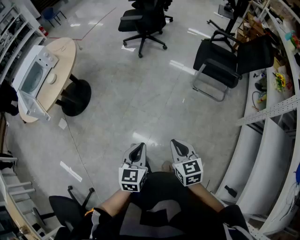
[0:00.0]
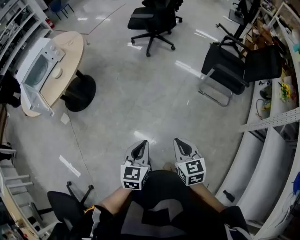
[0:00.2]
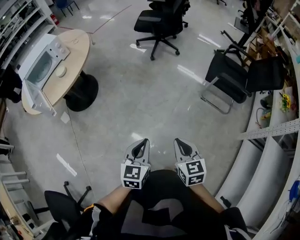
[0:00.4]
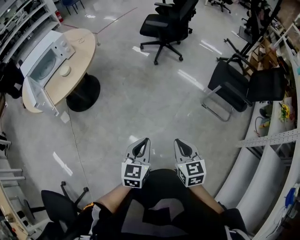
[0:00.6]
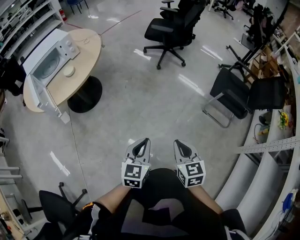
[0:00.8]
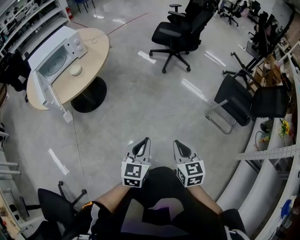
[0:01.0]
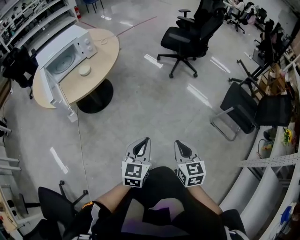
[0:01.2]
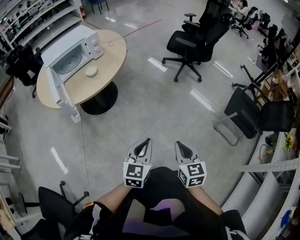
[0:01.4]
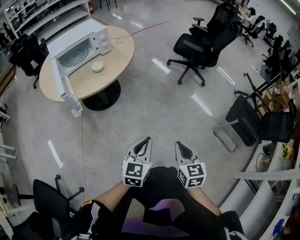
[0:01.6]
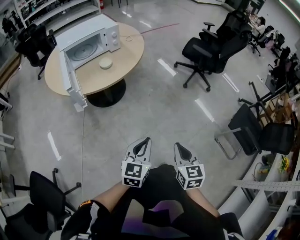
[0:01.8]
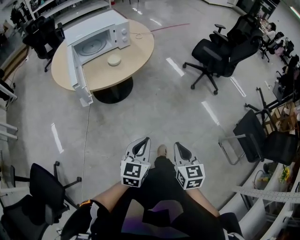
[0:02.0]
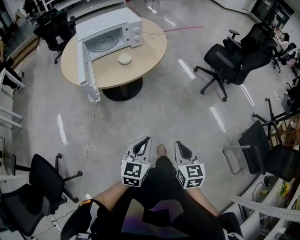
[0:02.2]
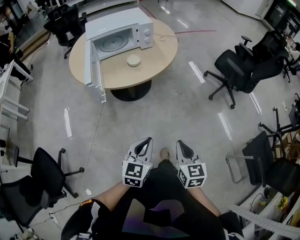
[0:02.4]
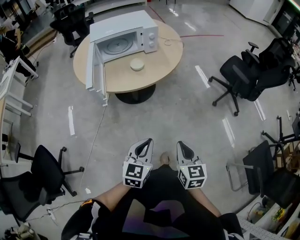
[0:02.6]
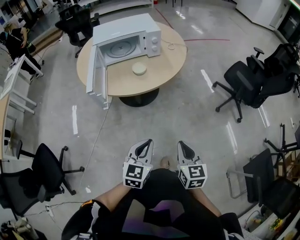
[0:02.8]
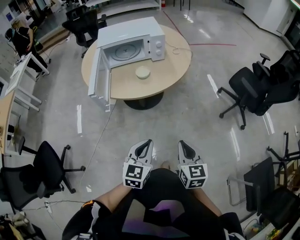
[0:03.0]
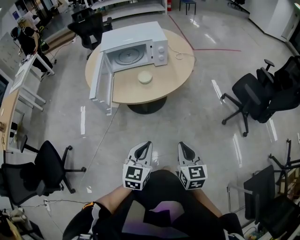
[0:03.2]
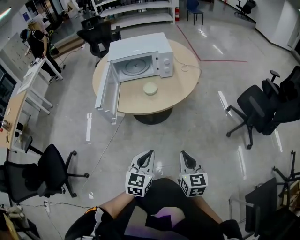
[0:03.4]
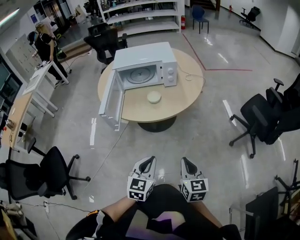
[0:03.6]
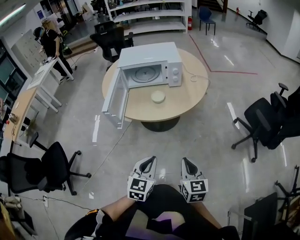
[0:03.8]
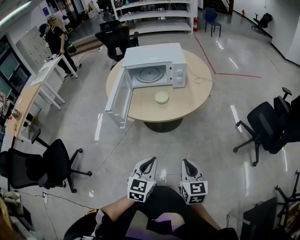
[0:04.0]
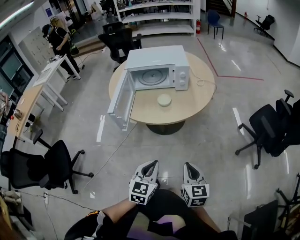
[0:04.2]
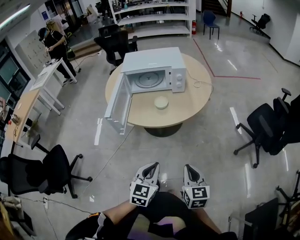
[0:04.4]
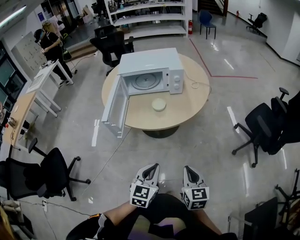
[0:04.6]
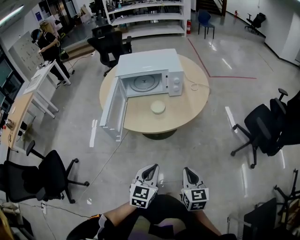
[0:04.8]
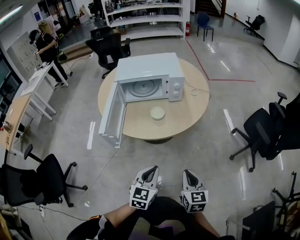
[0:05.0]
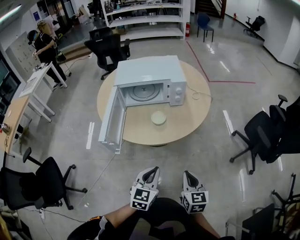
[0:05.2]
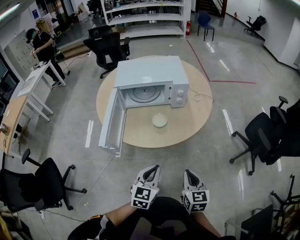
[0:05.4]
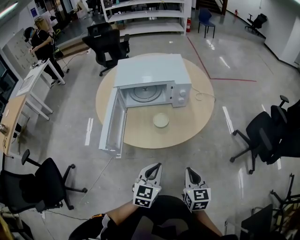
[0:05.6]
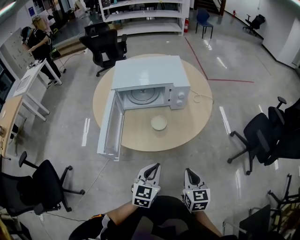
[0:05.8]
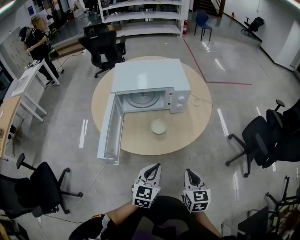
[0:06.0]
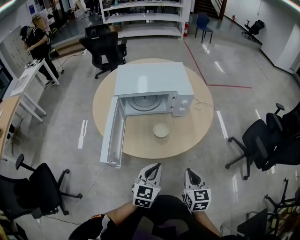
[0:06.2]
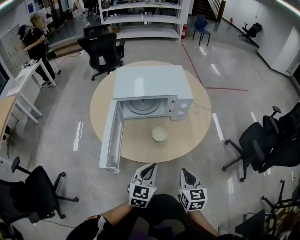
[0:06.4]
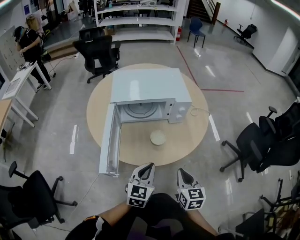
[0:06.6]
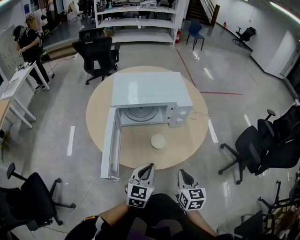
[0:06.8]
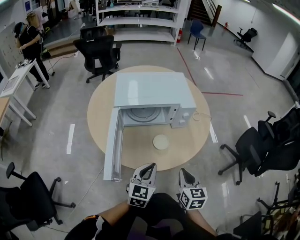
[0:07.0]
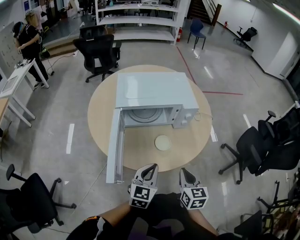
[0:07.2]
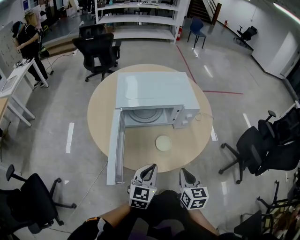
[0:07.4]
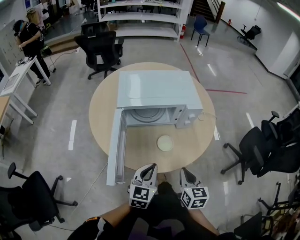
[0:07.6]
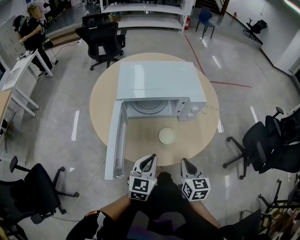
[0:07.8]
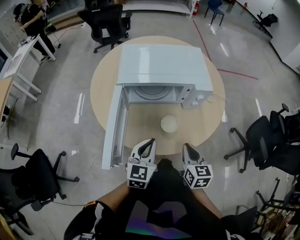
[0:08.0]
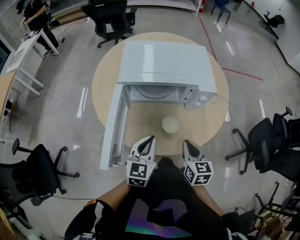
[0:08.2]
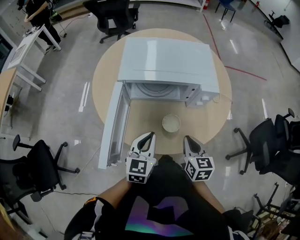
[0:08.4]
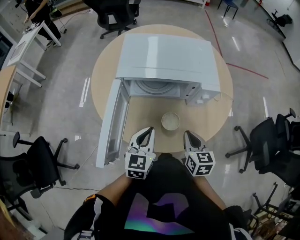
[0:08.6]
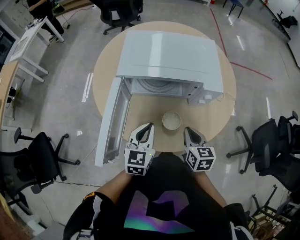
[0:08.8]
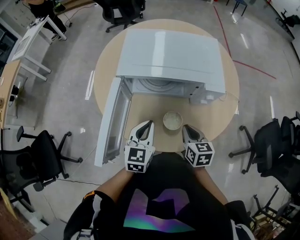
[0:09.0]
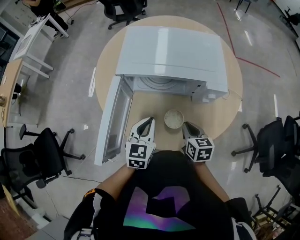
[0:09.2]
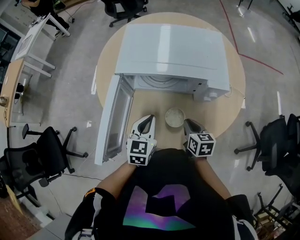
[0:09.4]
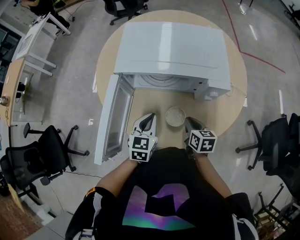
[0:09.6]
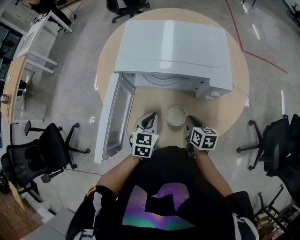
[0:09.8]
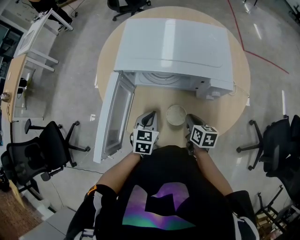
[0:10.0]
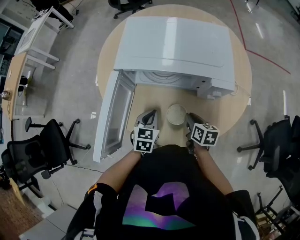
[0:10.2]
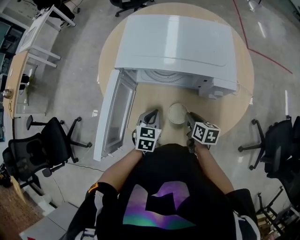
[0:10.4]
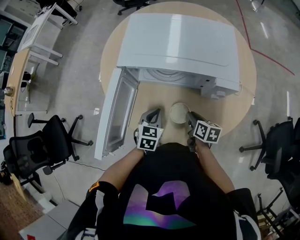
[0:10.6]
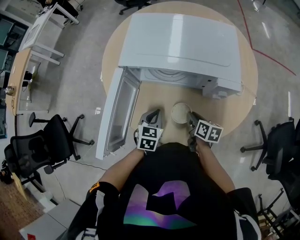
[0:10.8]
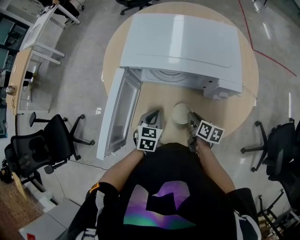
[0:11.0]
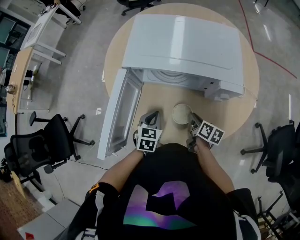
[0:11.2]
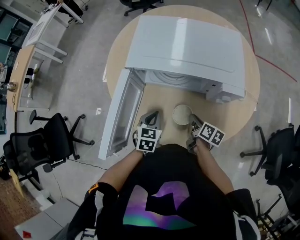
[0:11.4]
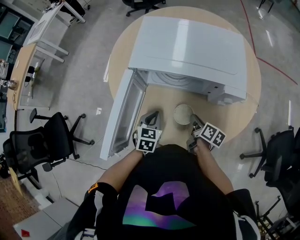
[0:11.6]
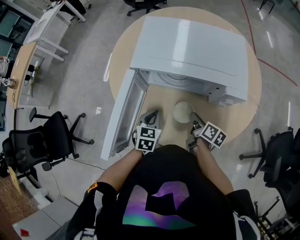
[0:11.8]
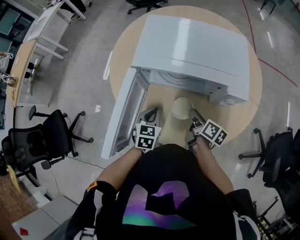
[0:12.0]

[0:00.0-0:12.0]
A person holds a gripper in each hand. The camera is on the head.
0:00.0 to 0:01.6: The two grippers go about 35 cm to the left and forward.
0:01.6 to 0:03.0: The right gripper changes place by roughly 25 cm, and turns by about 30 degrees, while the left gripper ends up approximately 20 cm from where it was, and changes its angle by about 30 degrees.
0:03.0 to 0:04.4: The right gripper heads forward, covering about 5 cm.
0:04.4 to 0:06.0: The grippers both shift forward by some 20 cm.
0:06.0 to 0:07.6: The left gripper travels to the left and forward by about 15 cm. Meanwhile the right gripper goes approximately 15 cm forward and to the left.
0:07.6 to 0:09.0: The right gripper moves forward and downward, some 20 cm. The left gripper goes roughly 15 cm forward.
0:09.0 to 0:10.4: The two grippers go some 10 cm downward. The right gripper turns by roughly 20 degrees.
0:10.4 to 0:12.0: The right gripper moves roughly 5 cm, and swivels some 20 degrees. The left gripper heads to the left, covering roughly 5 cm.

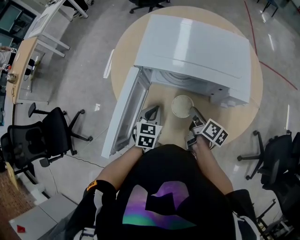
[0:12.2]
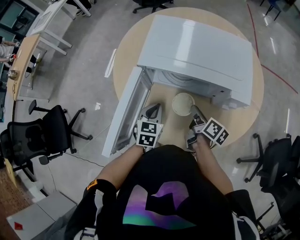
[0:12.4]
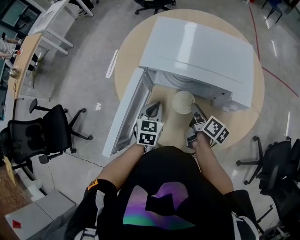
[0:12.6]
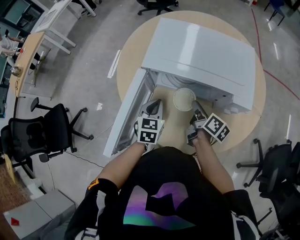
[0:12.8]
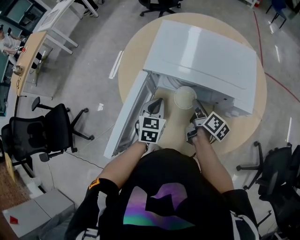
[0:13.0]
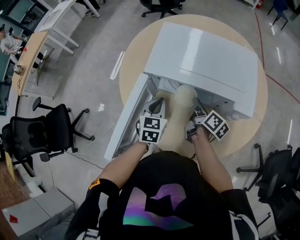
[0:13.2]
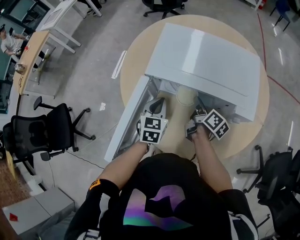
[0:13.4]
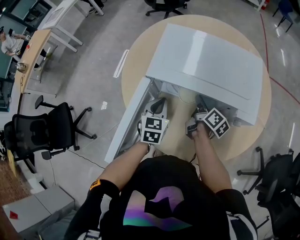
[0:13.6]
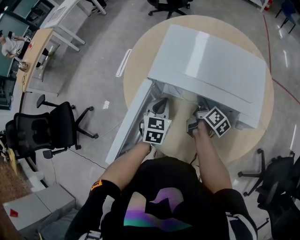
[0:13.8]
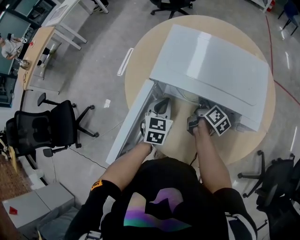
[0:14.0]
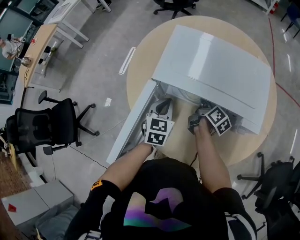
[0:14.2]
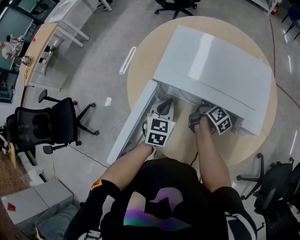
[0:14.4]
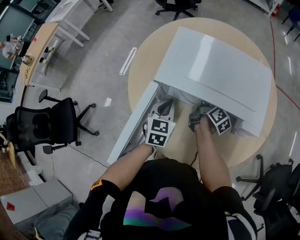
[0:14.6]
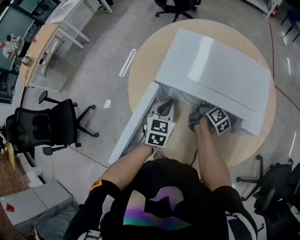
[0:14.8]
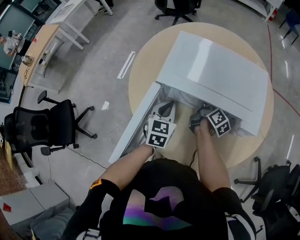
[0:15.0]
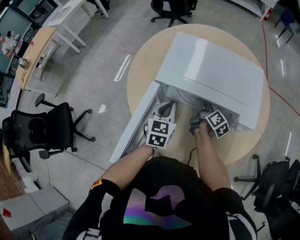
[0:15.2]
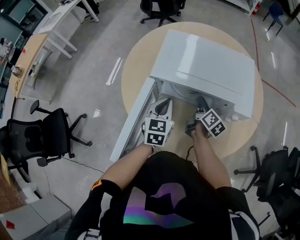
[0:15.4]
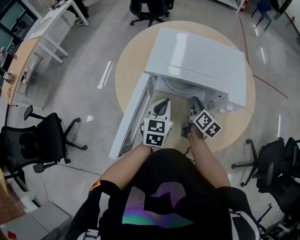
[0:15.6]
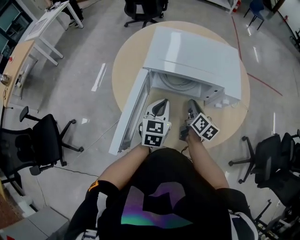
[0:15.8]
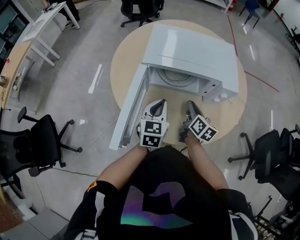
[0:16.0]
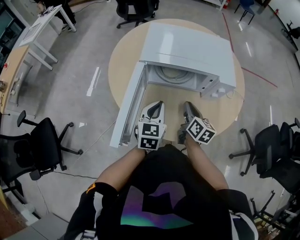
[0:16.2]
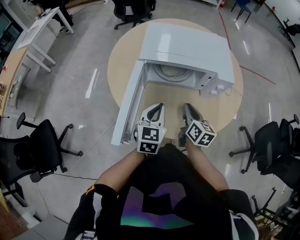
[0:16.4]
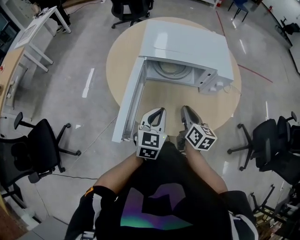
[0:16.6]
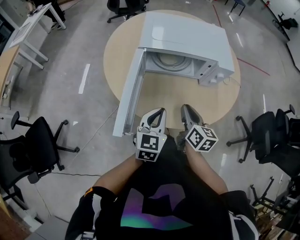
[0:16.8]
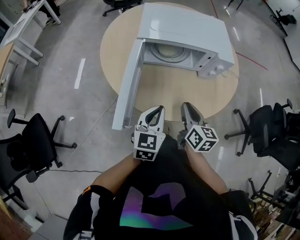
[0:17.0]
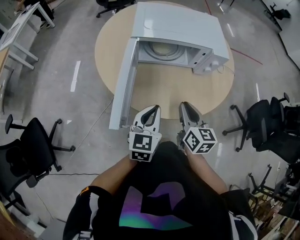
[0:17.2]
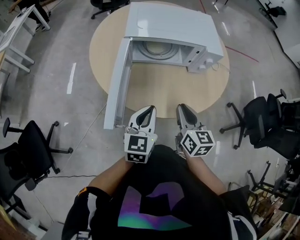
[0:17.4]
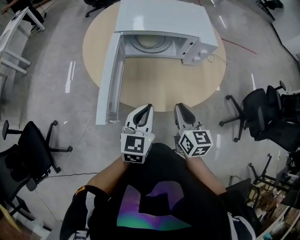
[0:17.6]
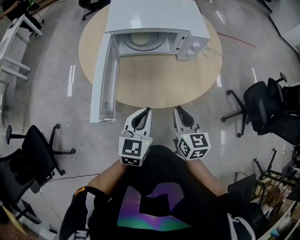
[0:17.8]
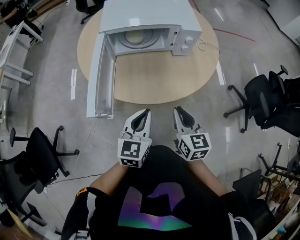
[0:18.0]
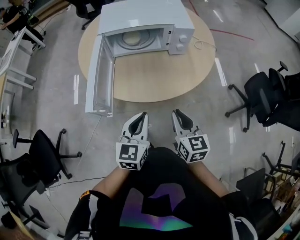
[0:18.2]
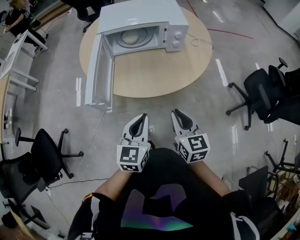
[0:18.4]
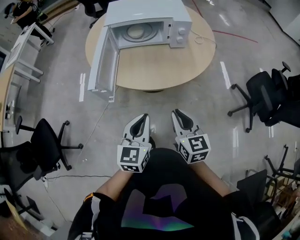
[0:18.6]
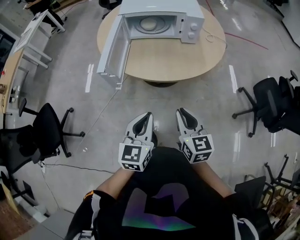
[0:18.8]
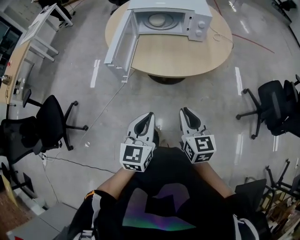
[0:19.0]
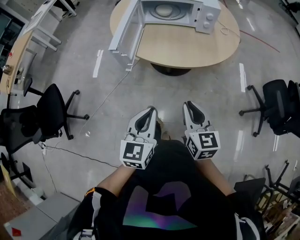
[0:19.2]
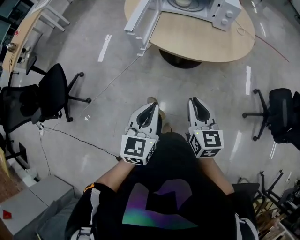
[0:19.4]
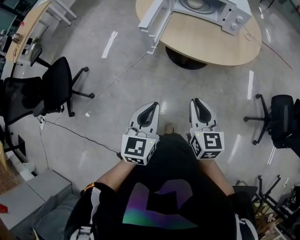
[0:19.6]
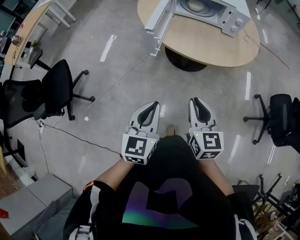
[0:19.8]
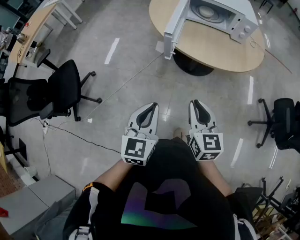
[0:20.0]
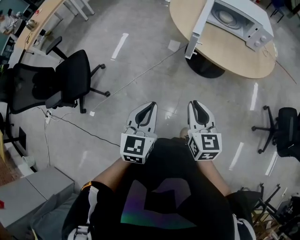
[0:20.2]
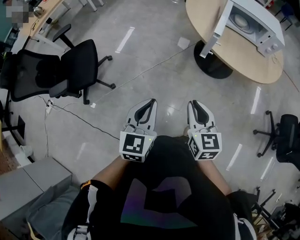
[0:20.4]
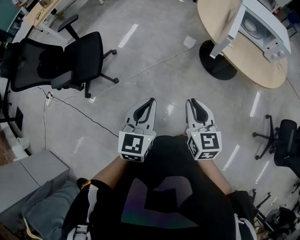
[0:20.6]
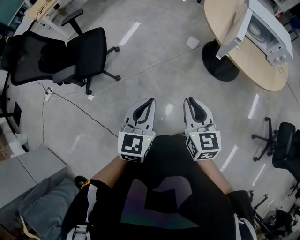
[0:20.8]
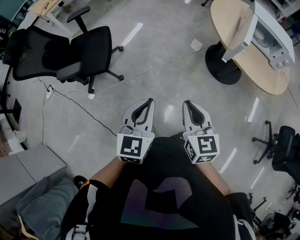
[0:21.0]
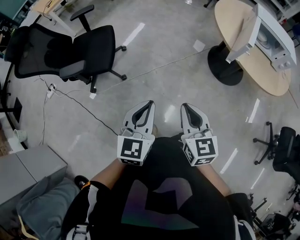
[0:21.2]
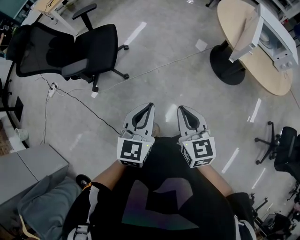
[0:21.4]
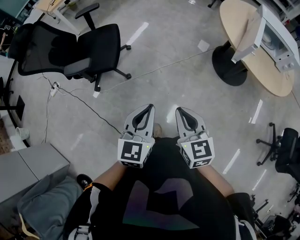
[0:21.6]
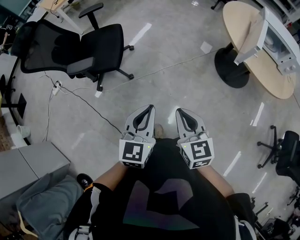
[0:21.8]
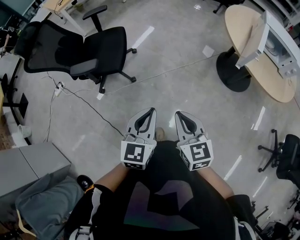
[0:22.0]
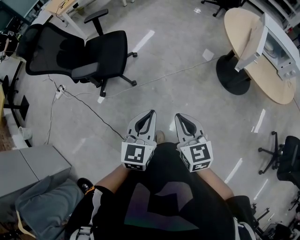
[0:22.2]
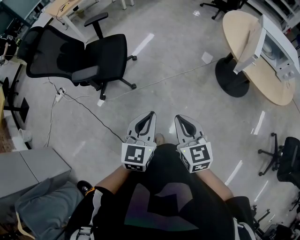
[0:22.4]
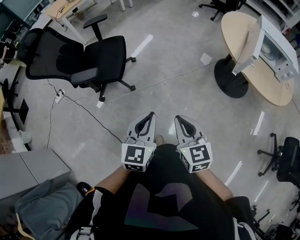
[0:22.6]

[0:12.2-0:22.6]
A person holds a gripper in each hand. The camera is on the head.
0:12.2 to 0:13.6: The right gripper goes some 10 cm forward, while the left gripper shifts approximately 10 cm forward and upward.
0:13.6 to 0:15.2: The grippers move only a little.
0:15.2 to 0:16.6: Both grippers travel together backward, some 20 cm. The right gripper rotates approximately 30 degrees.
0:16.6 to 0:18.2: Both grippers move backward, approximately 20 cm.
0:18.2 to 0:19.6: Both grippers move backward, about 20 cm.
0:19.6 to 0:21.2: The two grippers travel together, to the left, about 50 cm. The right gripper swivels about 20 degrees.
0:21.2 to 0:22.6: The right gripper goes some 5 cm to the left.

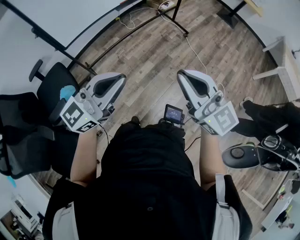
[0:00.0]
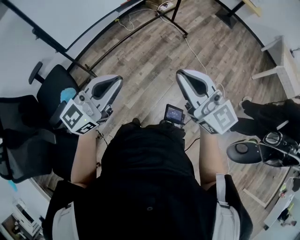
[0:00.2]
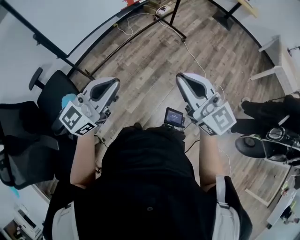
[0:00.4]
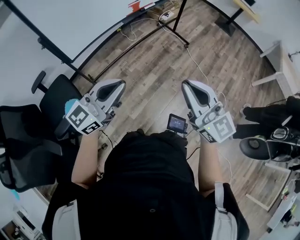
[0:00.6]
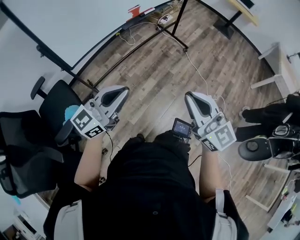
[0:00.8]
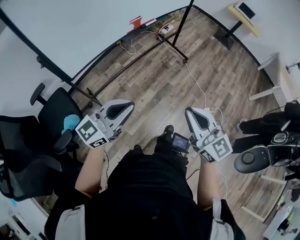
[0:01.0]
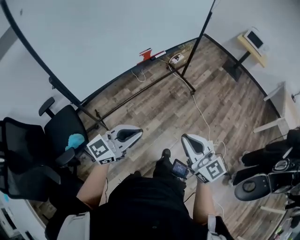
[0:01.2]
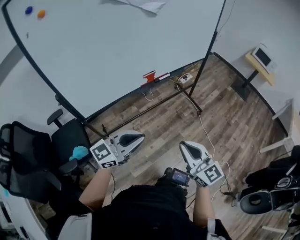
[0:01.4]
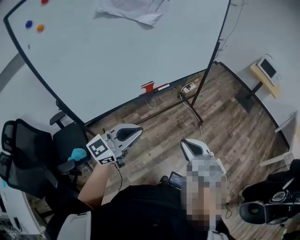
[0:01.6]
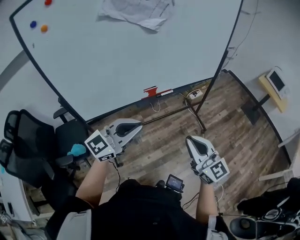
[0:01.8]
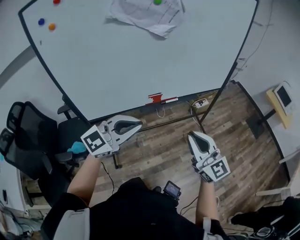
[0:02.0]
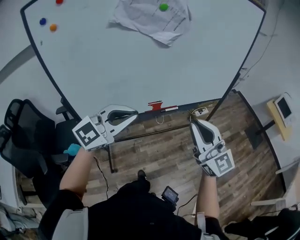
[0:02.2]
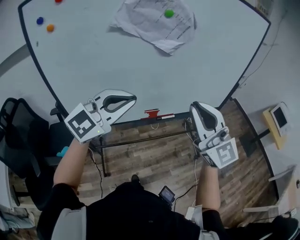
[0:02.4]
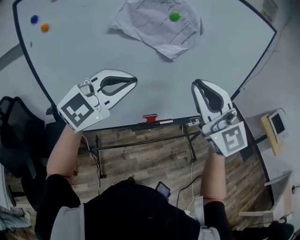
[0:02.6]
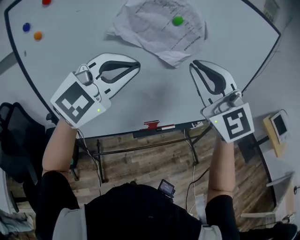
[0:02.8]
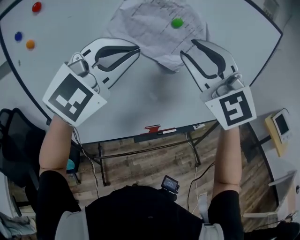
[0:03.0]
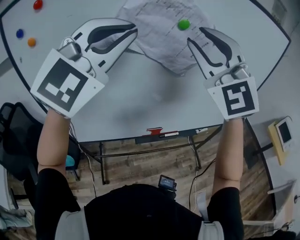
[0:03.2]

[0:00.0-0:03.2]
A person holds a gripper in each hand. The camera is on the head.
0:00.0 to 0:01.6: The two grippers go approximately 25 cm forward.
0:01.6 to 0:03.2: The left gripper heads upward, covering approximately 35 cm, and rolls clockwise, seen from behind, by about 60 degrees; the right gripper moves approximately 60 cm, twists about 60 degrees counterclockwise, seen from behind, and opens up.
